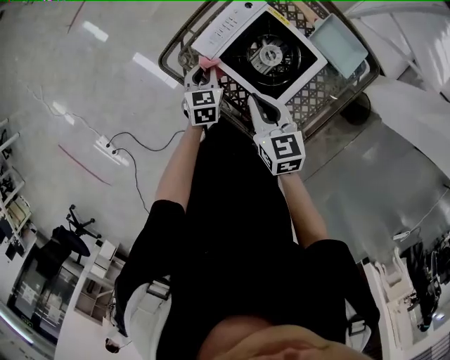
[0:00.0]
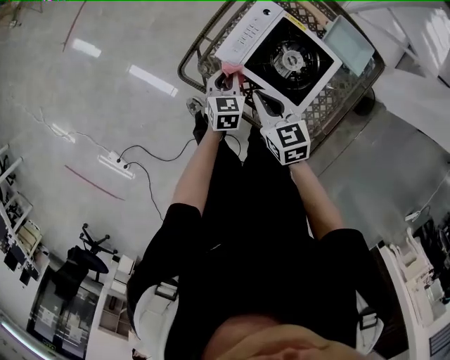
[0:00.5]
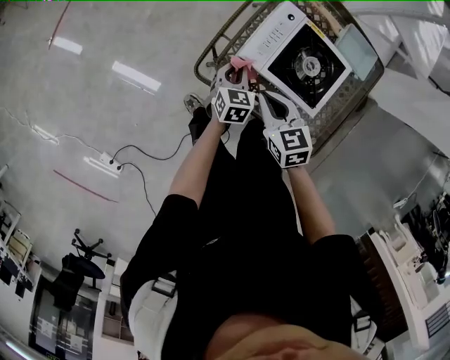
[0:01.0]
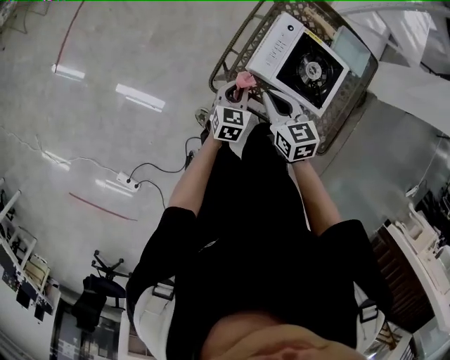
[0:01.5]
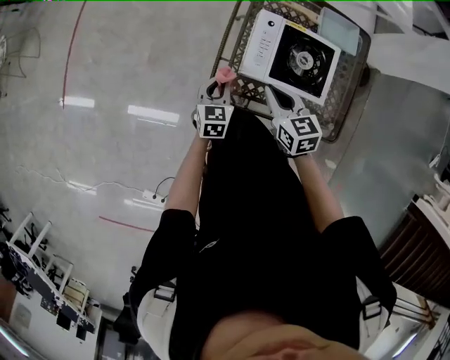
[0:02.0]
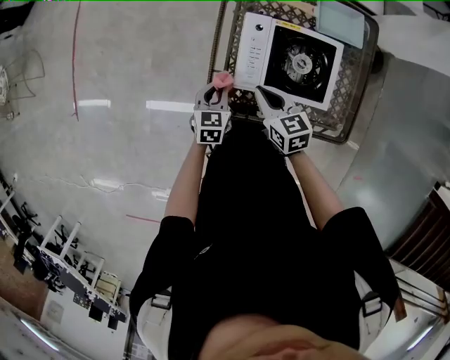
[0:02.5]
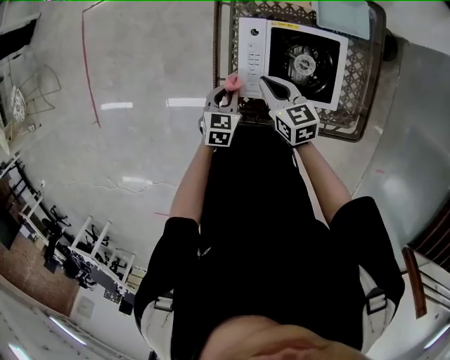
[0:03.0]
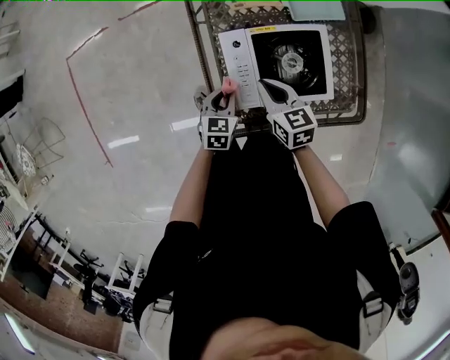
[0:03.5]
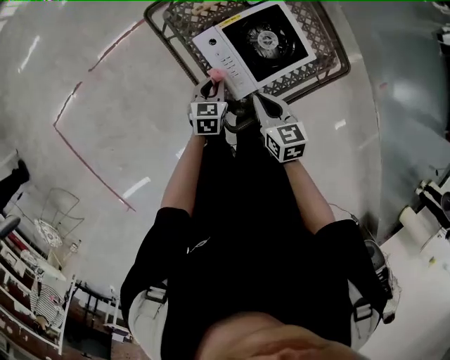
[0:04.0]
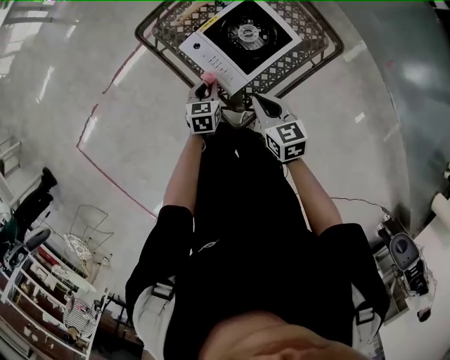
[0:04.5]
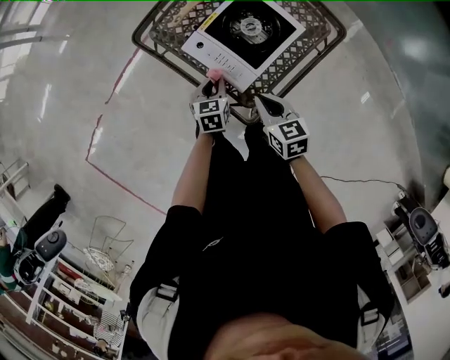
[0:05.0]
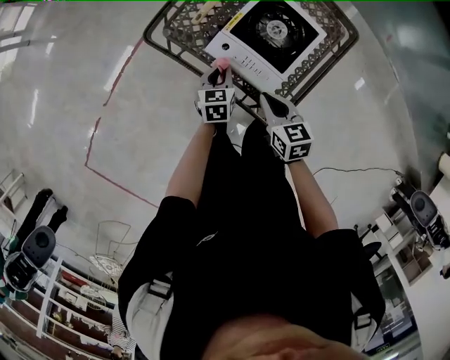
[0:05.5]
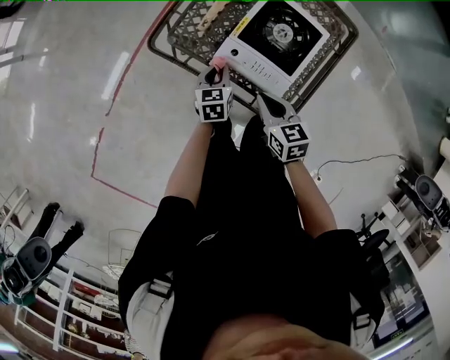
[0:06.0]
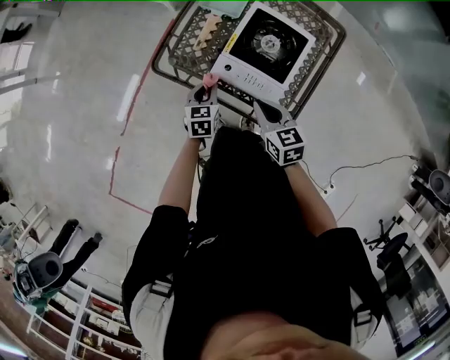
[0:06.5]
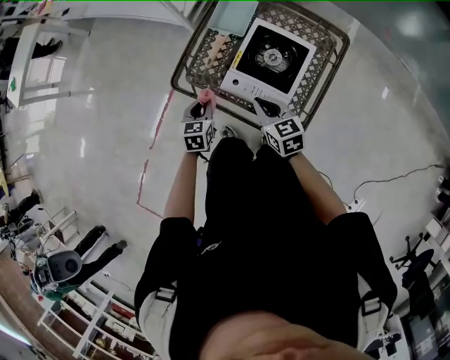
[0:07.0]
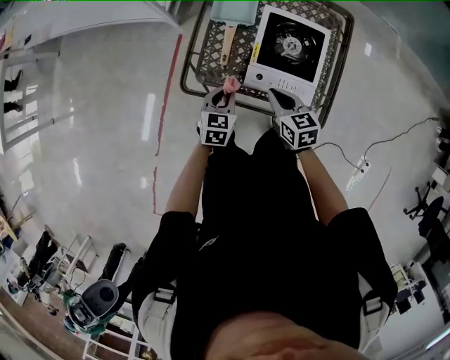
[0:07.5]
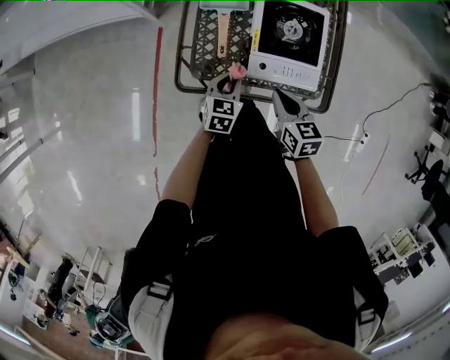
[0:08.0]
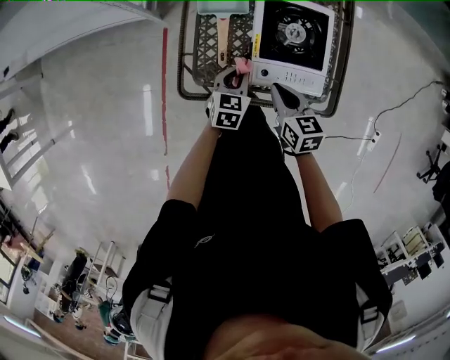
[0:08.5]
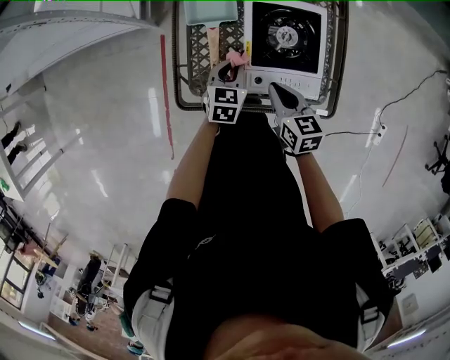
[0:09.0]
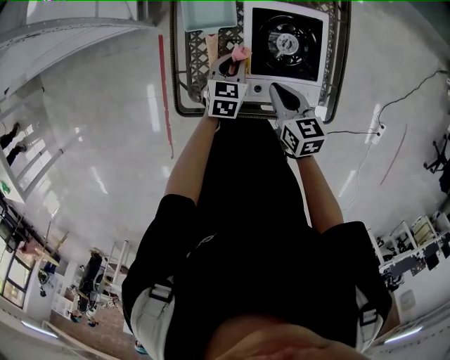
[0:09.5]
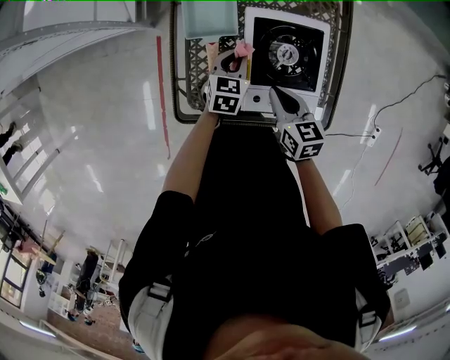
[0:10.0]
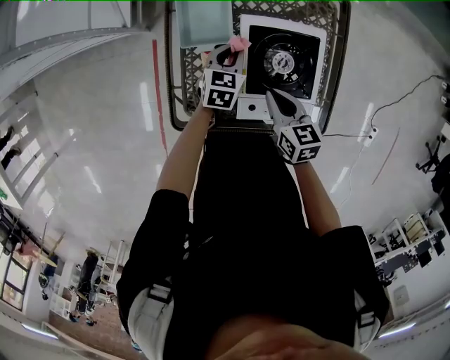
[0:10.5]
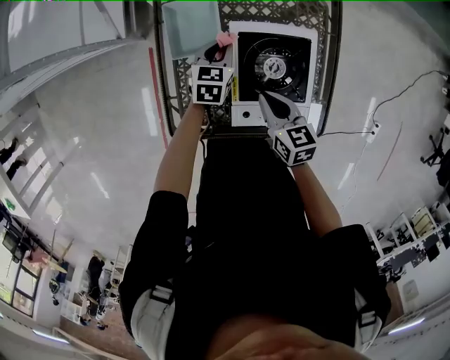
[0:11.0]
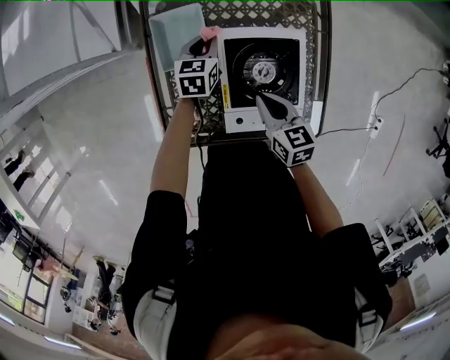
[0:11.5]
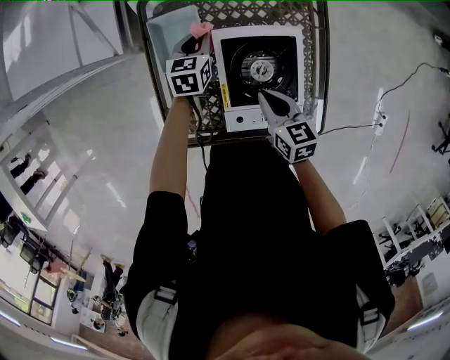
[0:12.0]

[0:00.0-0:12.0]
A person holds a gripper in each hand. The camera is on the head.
0:00.0 to 0:02.0: The left gripper moves approximately 15 cm, and swivels roughly 30 degrees, while the right gripper changes place by roughly 15 cm, and turns by approximately 30 degrees.
0:02.0 to 0:04.0: The right gripper turns by about 50 degrees; the left gripper changes place by approximately 15 cm, and changes its angle by some 50 degrees.
0:04.0 to 0:06.0: The right gripper moves to the left, about 10 cm, and rotates some 20 degrees; the left gripper is displaced forward and to the left by roughly 10 cm.
0:06.0 to 0:08.0: The right gripper ends up roughly 10 cm from where it was, and turns by roughly 30 degrees, while the left gripper moves about 5 cm, and turns by about 40 degrees.
0:08.0 to 0:10.0: Both grippers move forward, some 15 cm.
0:10.0 to 0:12.0: The left gripper shifts roughly 15 cm forward, while the right gripper shifts by about 5 cm.

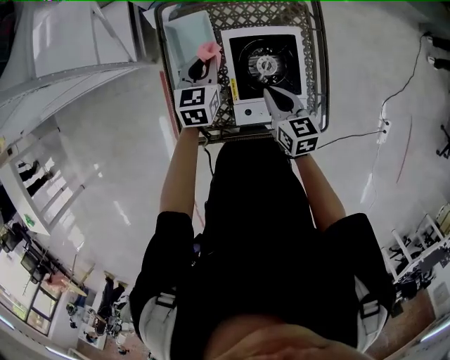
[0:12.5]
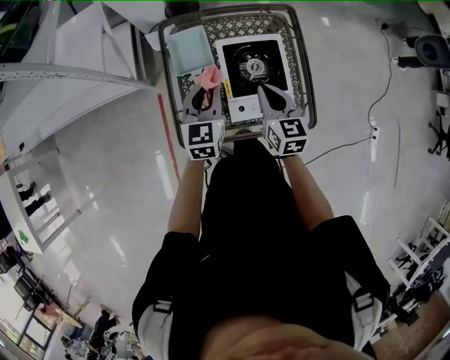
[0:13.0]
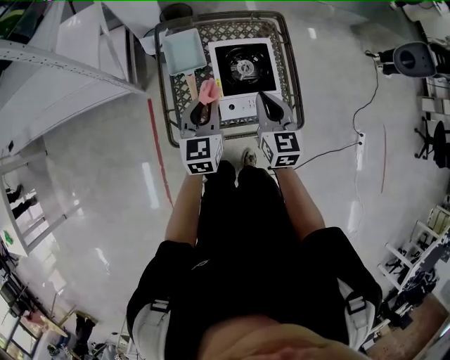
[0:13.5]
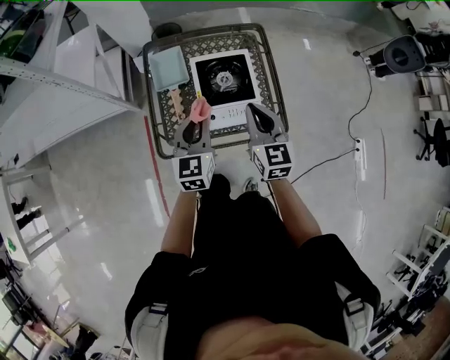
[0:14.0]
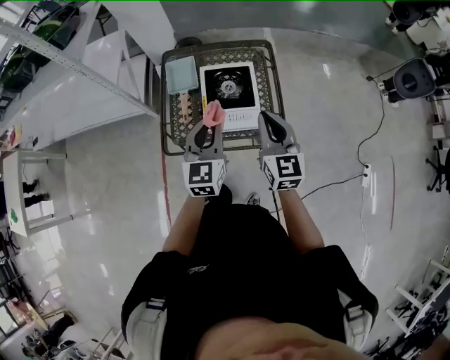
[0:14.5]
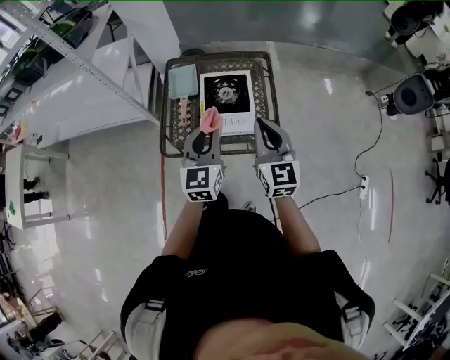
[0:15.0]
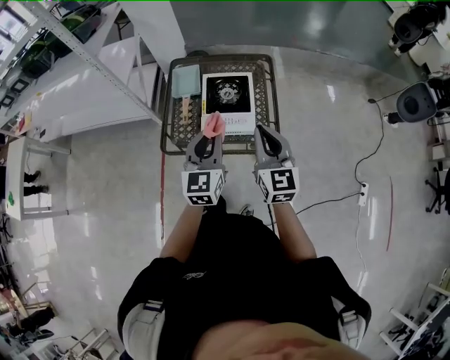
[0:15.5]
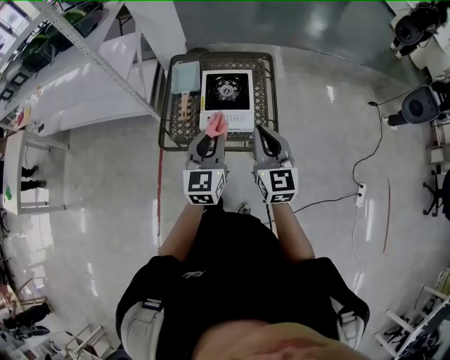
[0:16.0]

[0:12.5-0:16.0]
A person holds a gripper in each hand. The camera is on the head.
0:12.5 to 0:14.5: The left gripper travels backward, upward and to the right by about 40 cm, and changes its angle by approximately 20 degrees; the right gripper travels upward, backward and to the right by approximately 35 cm, and swivels roughly 40 degrees.
0:14.5 to 0:16.0: Both grippers travel together backward, some 5 cm.

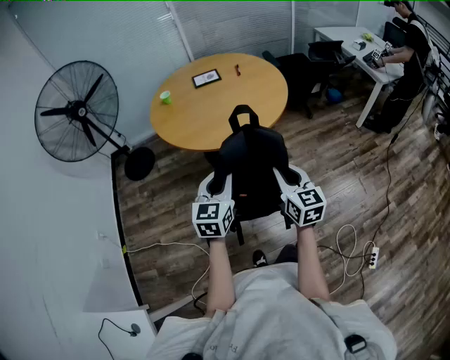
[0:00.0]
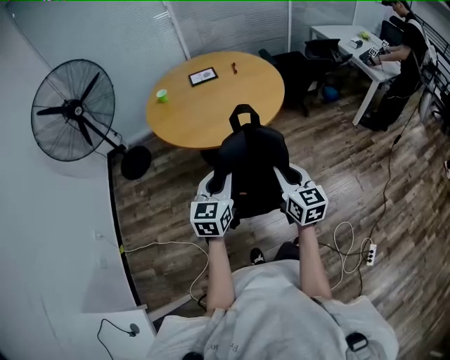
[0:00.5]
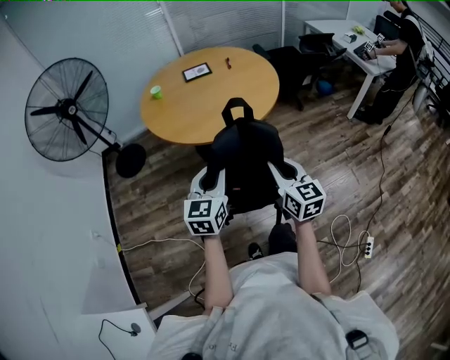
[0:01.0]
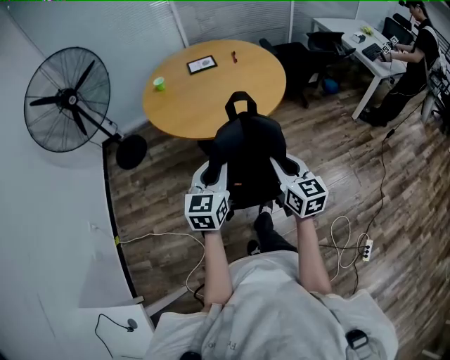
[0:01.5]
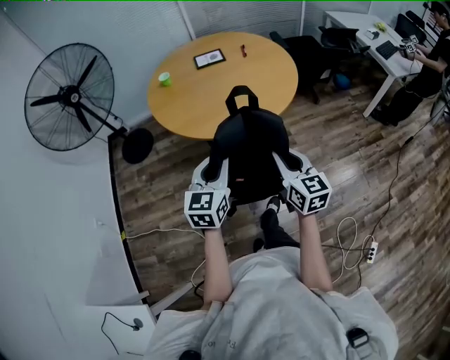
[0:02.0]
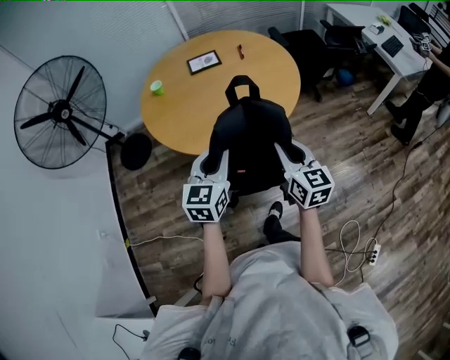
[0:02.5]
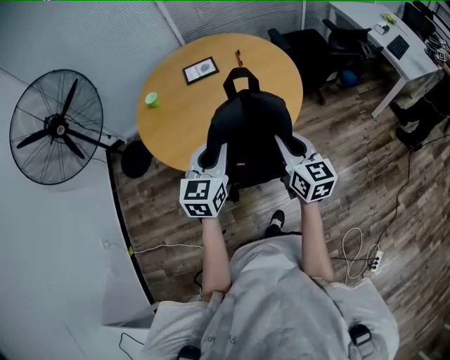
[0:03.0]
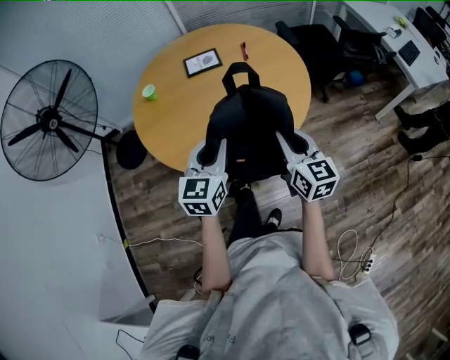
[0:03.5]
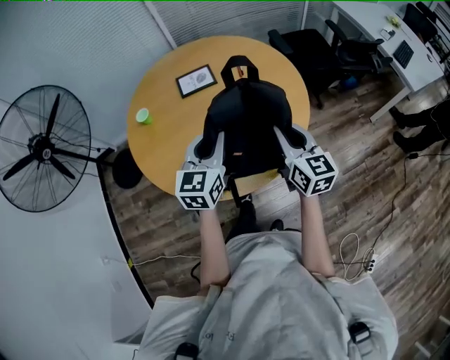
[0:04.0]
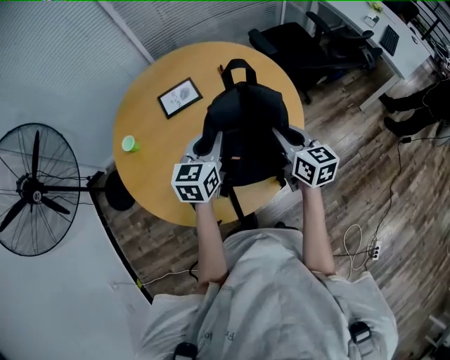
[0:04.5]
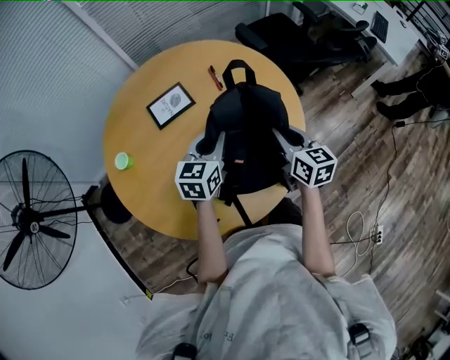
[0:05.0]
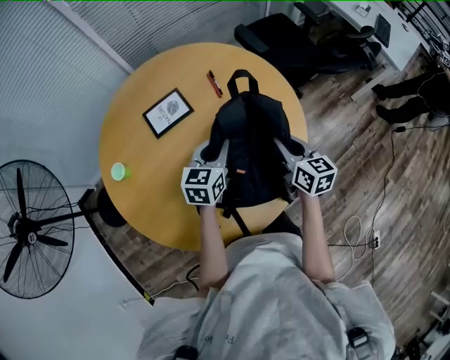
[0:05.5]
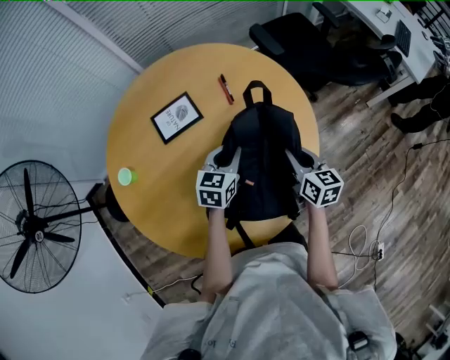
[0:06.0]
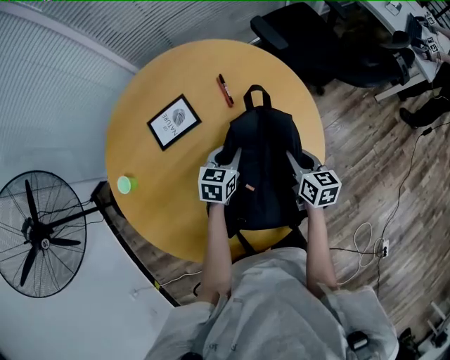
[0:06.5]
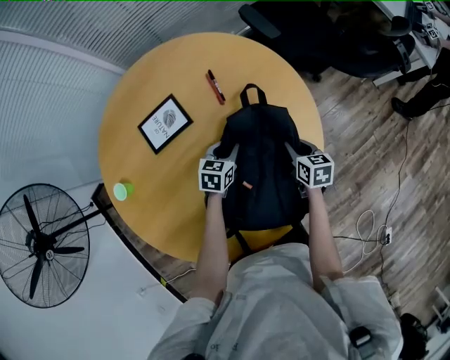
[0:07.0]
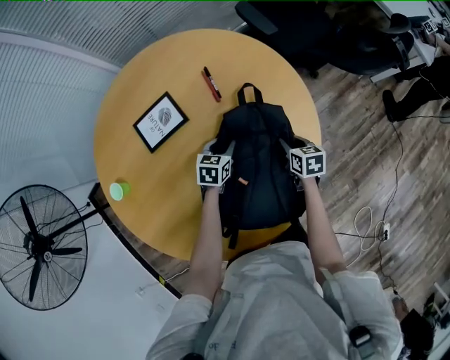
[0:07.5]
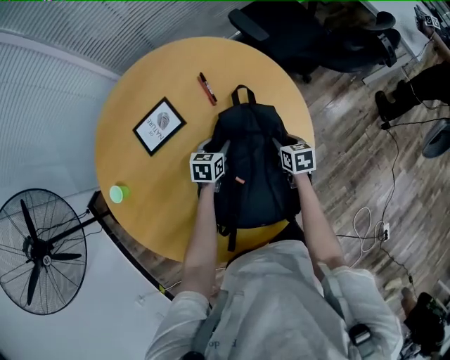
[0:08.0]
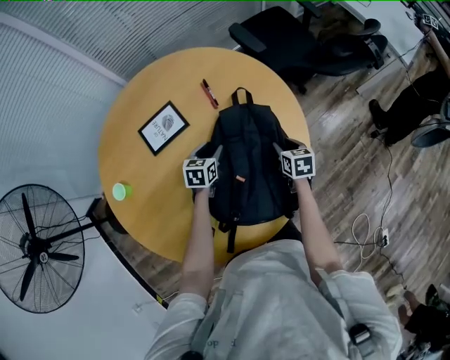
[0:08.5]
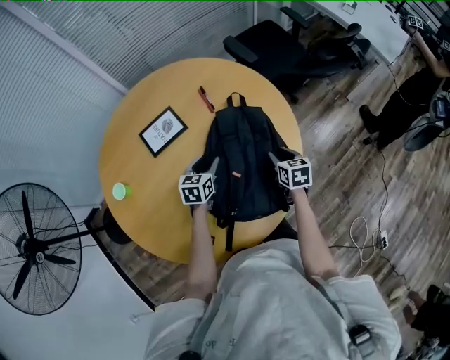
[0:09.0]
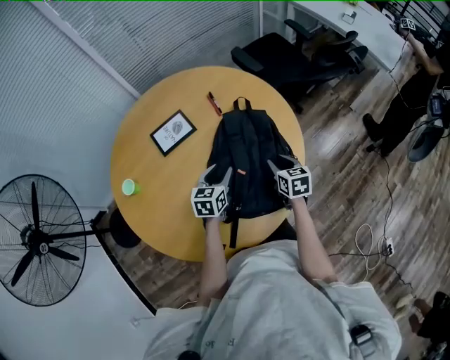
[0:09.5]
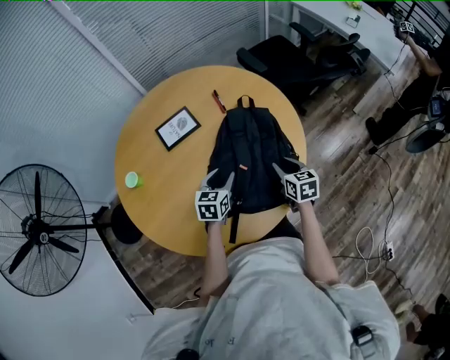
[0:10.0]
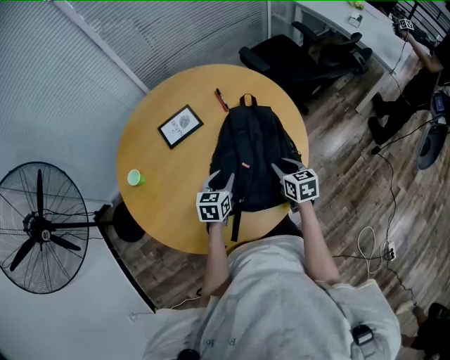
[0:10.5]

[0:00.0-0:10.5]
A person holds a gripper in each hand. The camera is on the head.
0:00.0 to 0:02.0: Both grippers move forward, some 5 cm.
0:02.0 to 0:04.0: Both grippers are carried forward, roughly 40 cm.
0:04.0 to 0:06.5: The left gripper moves forward and downward, about 40 cm, and changes its angle by approximately 30 degrees. Meanwhile the right gripper moves downward and forward, some 35 cm, and swivels approximately 30 degrees.
0:06.5 to 0:08.5: The grippers both shift downward by some 5 cm. The right gripper opens its fingers. Meanwhile the left gripper opens its fingers.
0:08.5 to 0:10.5: Both grippers travel together backward and upward, roughly 20 cm.

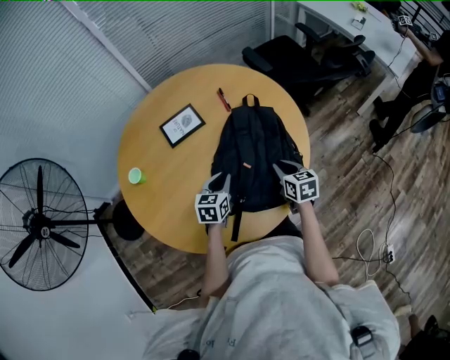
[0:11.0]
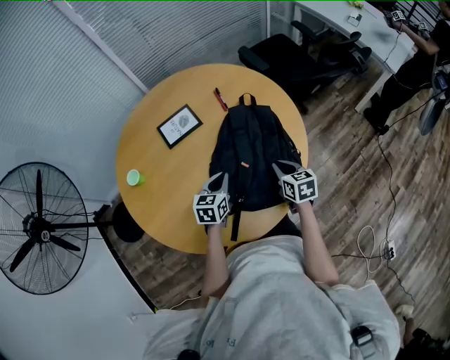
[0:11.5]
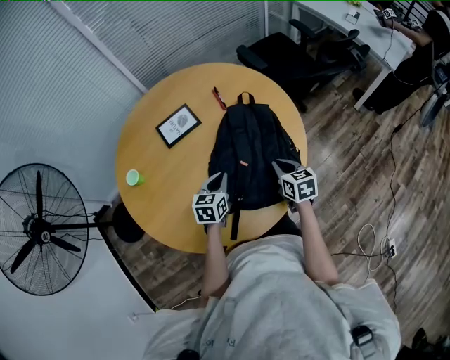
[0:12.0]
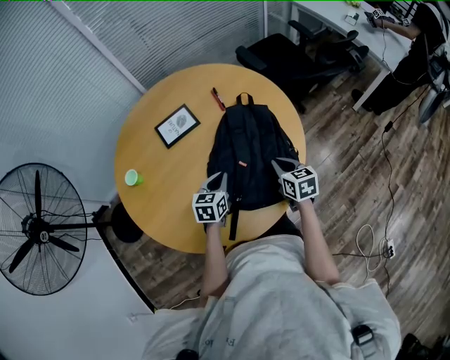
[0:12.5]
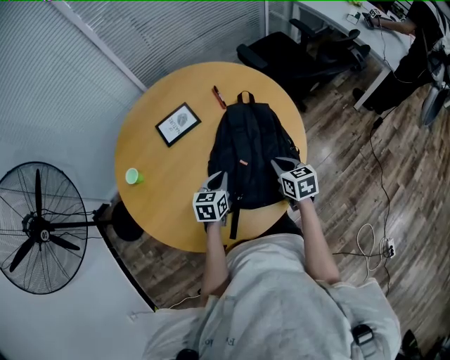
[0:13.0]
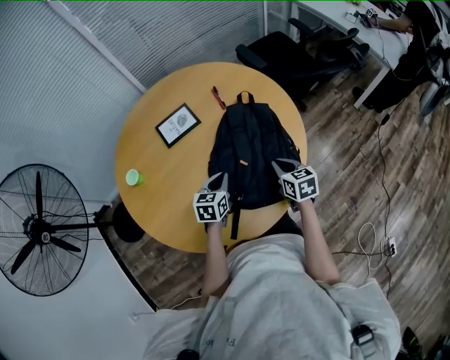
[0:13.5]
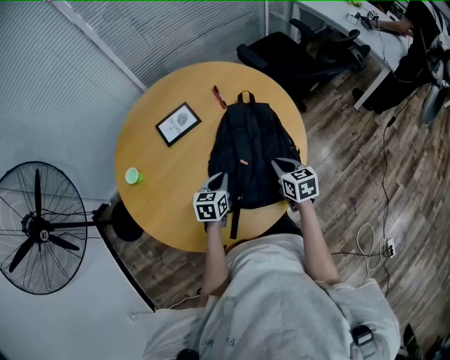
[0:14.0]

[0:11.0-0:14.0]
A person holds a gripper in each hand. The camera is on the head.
0:11.0 to 0:12.5: The grippers move only a little.
0:12.5 to 0:14.0: The two grippers keep their place.
